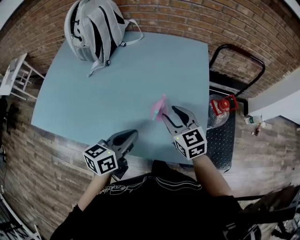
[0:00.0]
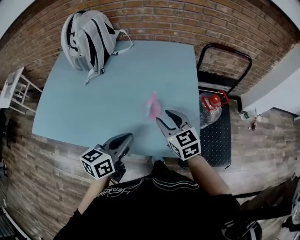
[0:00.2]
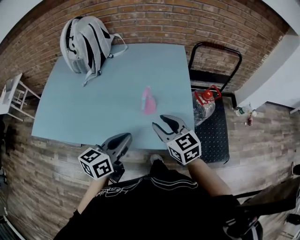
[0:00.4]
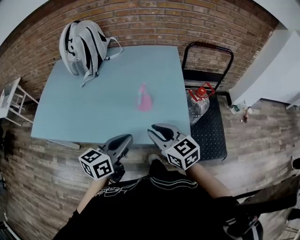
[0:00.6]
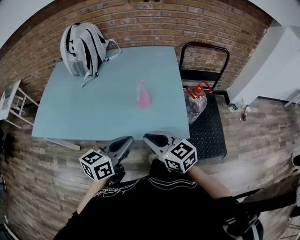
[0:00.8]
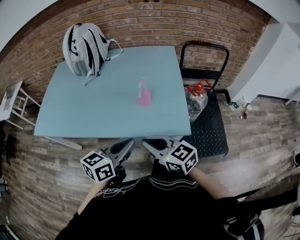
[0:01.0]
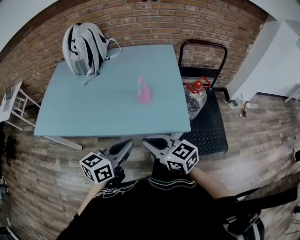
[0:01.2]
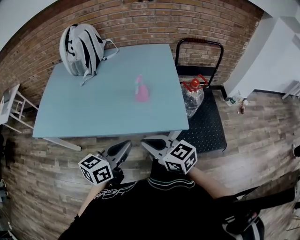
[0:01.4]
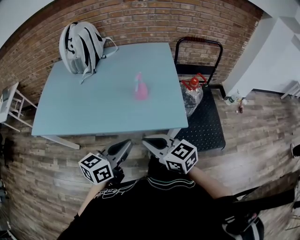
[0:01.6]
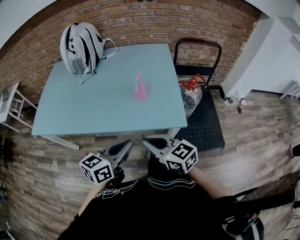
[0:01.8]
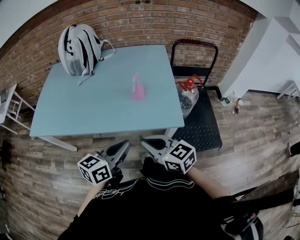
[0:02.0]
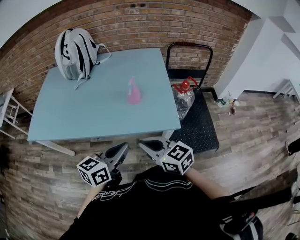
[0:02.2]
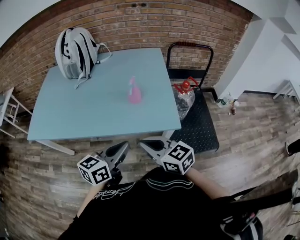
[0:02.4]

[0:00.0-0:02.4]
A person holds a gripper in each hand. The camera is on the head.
0:00.0 to 0:01.2: Both grippers move backward, approximately 25 cm. The right gripper turns by some 20 degrees, and closes up.
0:01.2 to 0:02.4: The grippers make only small movements.

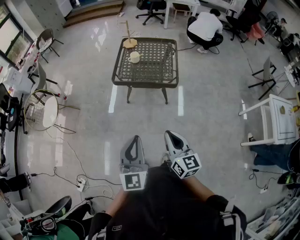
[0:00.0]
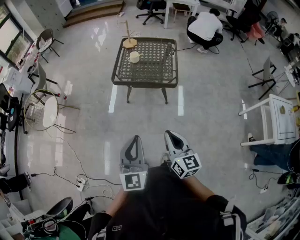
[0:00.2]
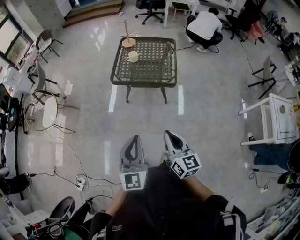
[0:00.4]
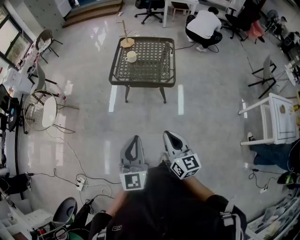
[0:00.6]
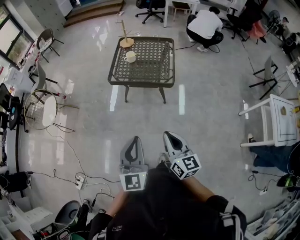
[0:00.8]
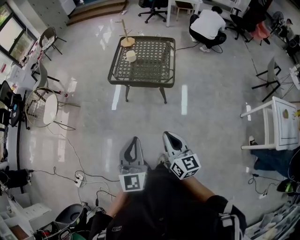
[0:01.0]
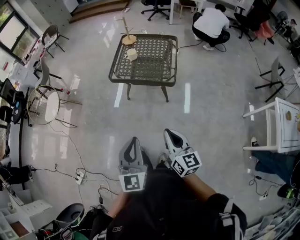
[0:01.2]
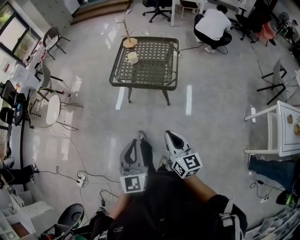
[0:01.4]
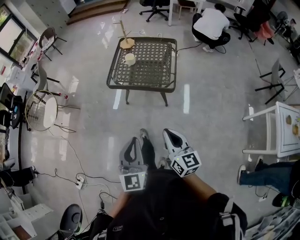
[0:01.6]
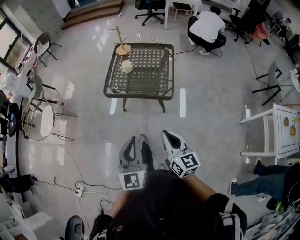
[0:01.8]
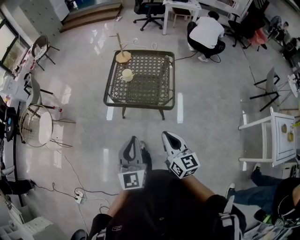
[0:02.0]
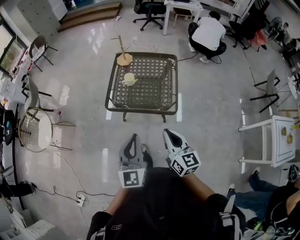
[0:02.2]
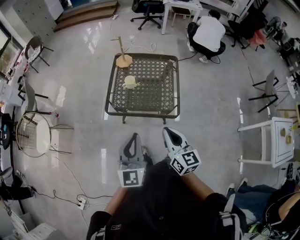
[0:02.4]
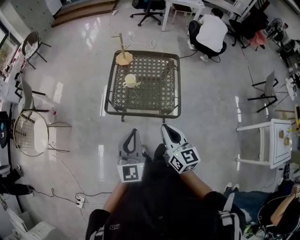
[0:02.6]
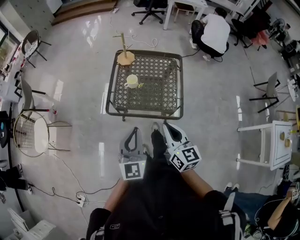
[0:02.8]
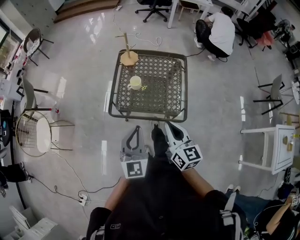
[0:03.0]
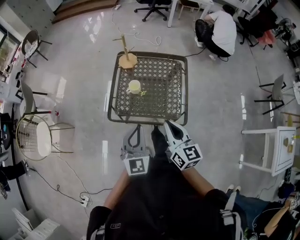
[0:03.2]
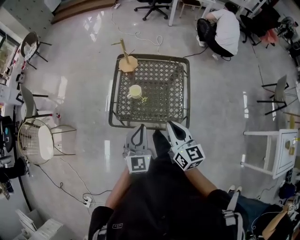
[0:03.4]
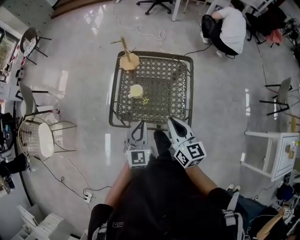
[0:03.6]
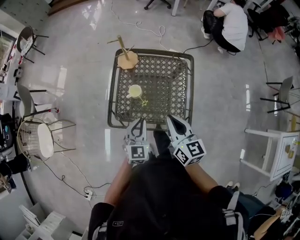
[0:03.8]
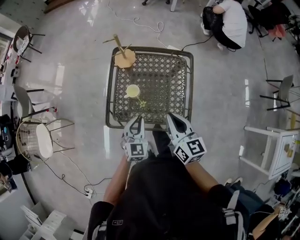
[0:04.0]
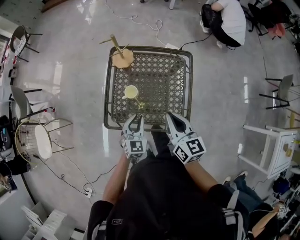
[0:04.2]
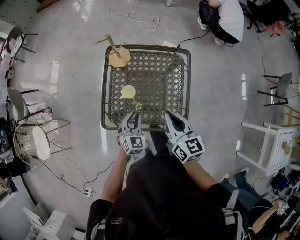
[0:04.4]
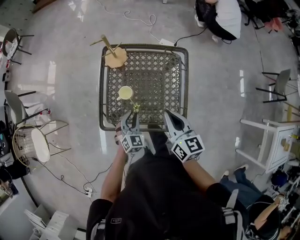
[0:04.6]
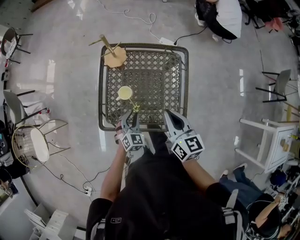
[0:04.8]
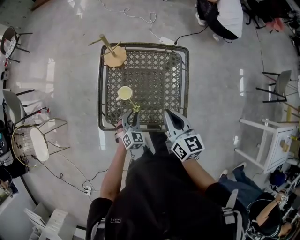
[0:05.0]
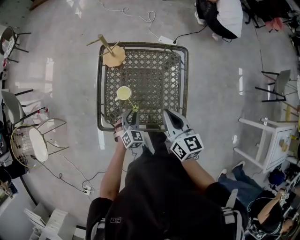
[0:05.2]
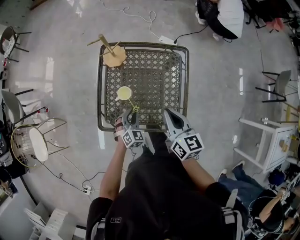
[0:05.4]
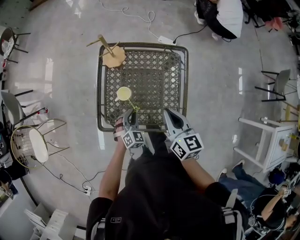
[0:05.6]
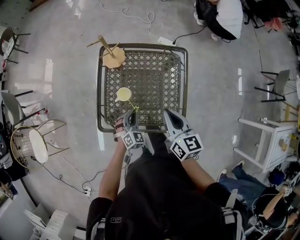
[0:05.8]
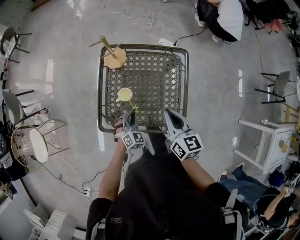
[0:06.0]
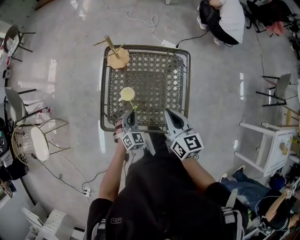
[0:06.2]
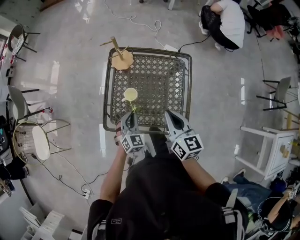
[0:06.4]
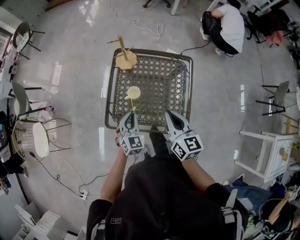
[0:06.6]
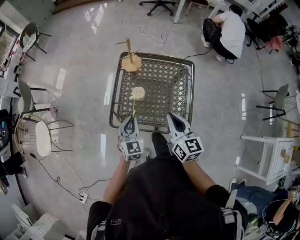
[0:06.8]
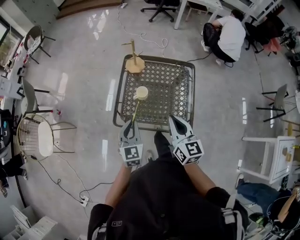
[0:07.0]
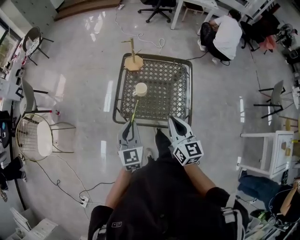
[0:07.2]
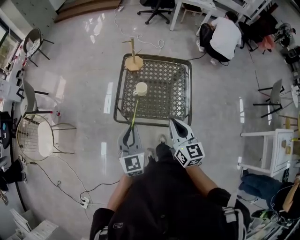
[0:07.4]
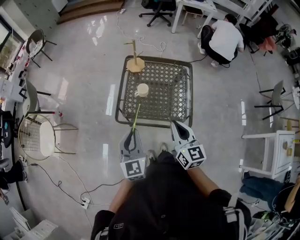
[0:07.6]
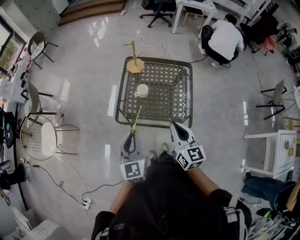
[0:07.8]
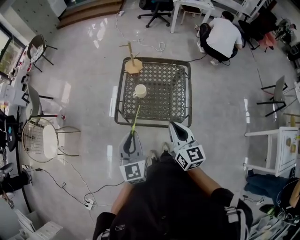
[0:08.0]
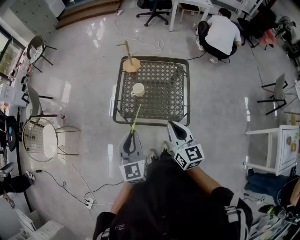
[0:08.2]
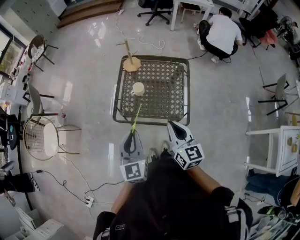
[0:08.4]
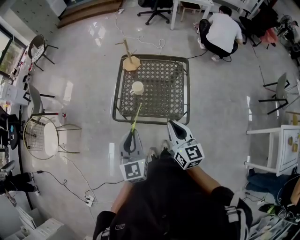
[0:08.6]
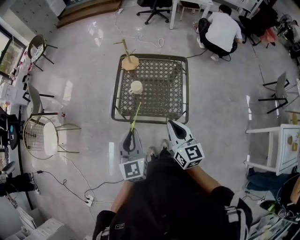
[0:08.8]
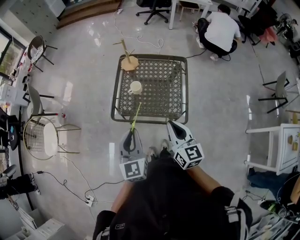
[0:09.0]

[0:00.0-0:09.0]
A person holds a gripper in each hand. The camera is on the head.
0:00.0 to 0:01.6: The two grippers go roughly 10 cm to the right and forward.
0:01.6 to 0:03.0: The grippers both shift forward by approximately 35 cm.
0:03.0 to 0:04.4: The left gripper shifts some 30 cm downward and forward, and angles its fingers downward, by approximately 30 degrees, while the right gripper travels forward by roughly 20 cm.
0:04.4 to 0:06.0: The left gripper travels downward by roughly 5 cm.
0:06.0 to 0:07.6: The right gripper heads backward, upward and to the left, covering roughly 25 cm. The left gripper travels upward, backward and to the left by some 35 cm, and tilts its fingers approximately 30 degrees upward.
0:07.6 to 0:09.0: The left gripper shifts about 5 cm to the right, while the right gripper changes place by about 5 cm.

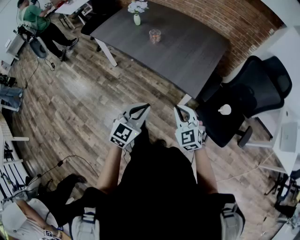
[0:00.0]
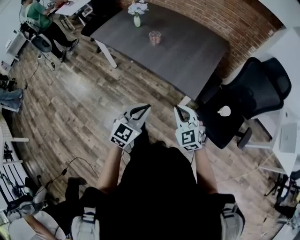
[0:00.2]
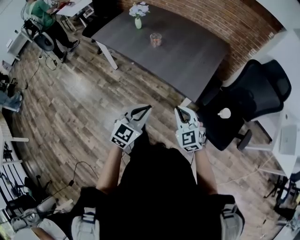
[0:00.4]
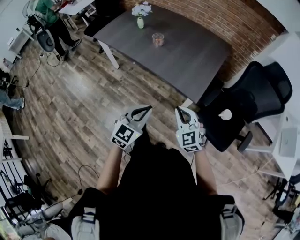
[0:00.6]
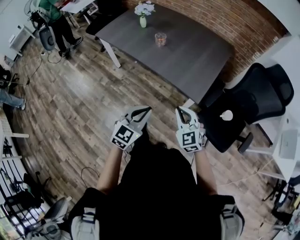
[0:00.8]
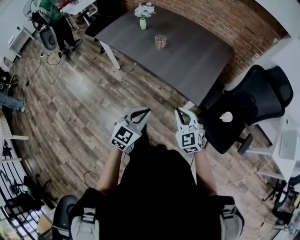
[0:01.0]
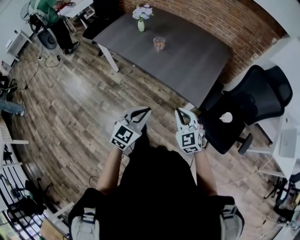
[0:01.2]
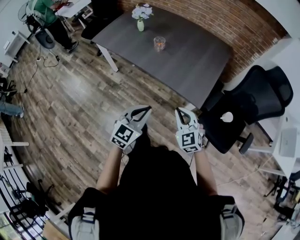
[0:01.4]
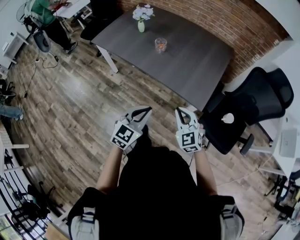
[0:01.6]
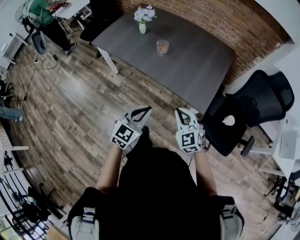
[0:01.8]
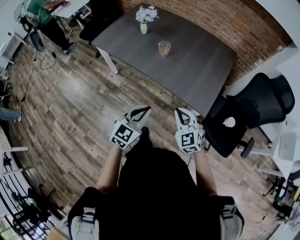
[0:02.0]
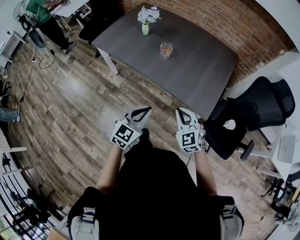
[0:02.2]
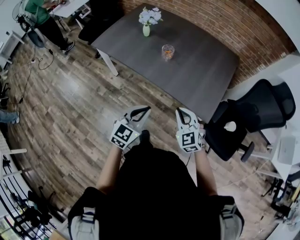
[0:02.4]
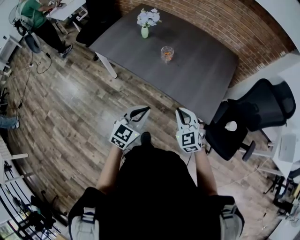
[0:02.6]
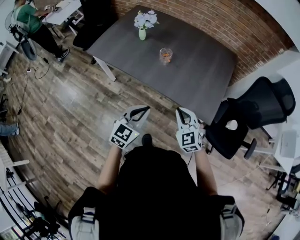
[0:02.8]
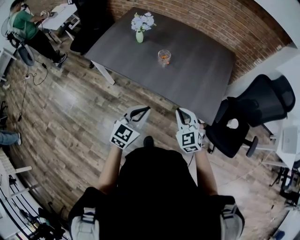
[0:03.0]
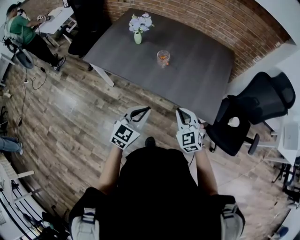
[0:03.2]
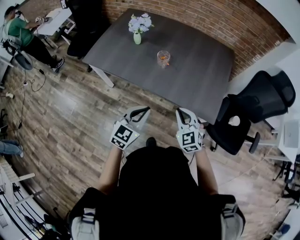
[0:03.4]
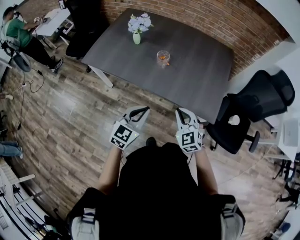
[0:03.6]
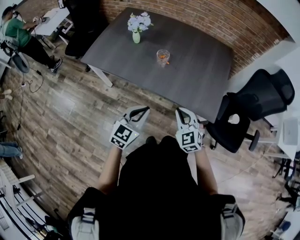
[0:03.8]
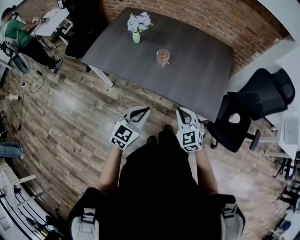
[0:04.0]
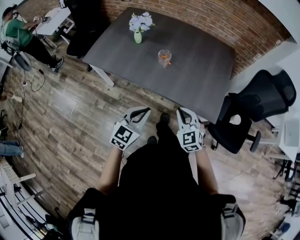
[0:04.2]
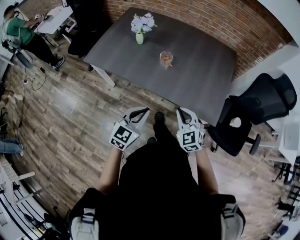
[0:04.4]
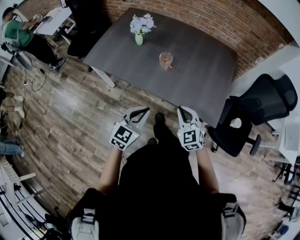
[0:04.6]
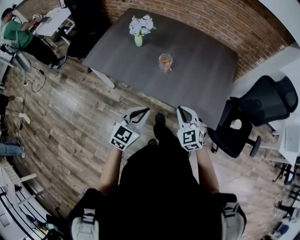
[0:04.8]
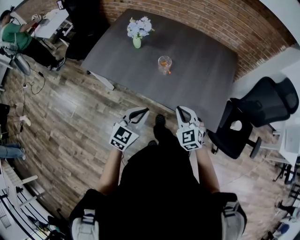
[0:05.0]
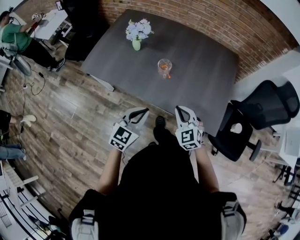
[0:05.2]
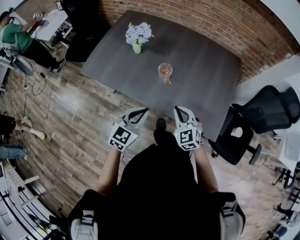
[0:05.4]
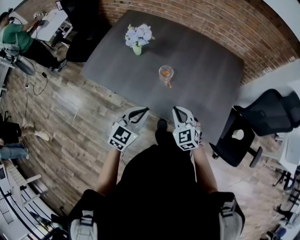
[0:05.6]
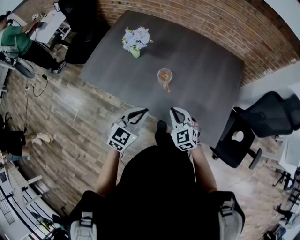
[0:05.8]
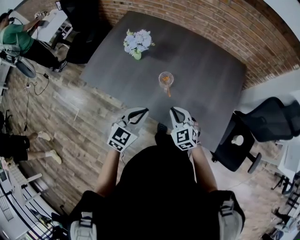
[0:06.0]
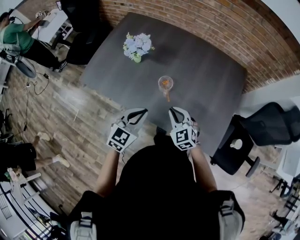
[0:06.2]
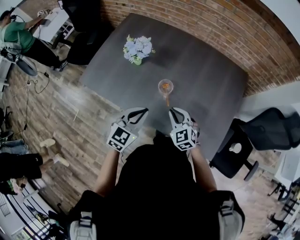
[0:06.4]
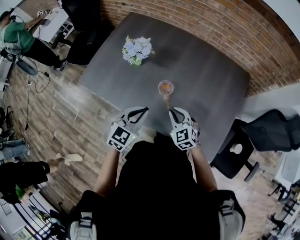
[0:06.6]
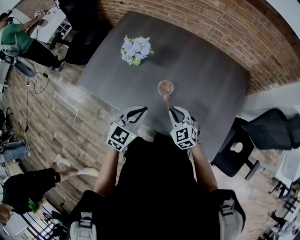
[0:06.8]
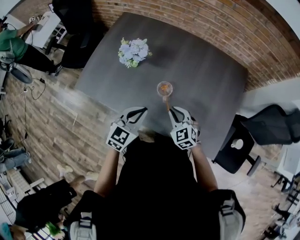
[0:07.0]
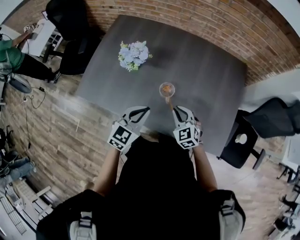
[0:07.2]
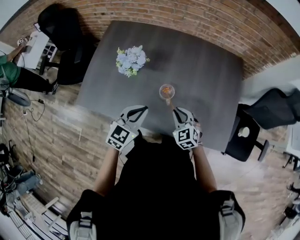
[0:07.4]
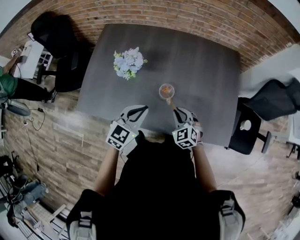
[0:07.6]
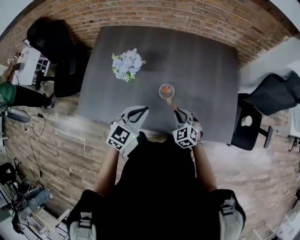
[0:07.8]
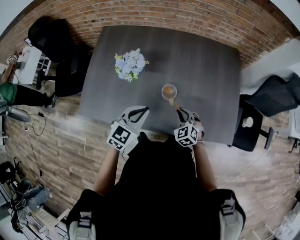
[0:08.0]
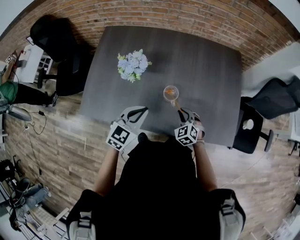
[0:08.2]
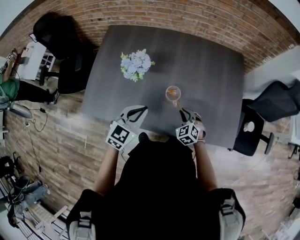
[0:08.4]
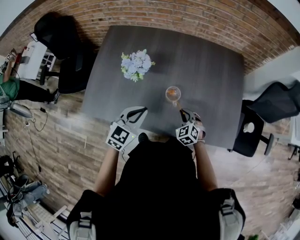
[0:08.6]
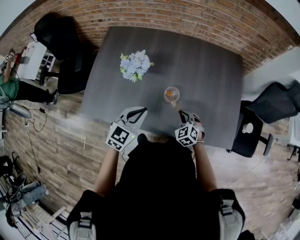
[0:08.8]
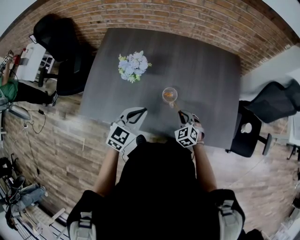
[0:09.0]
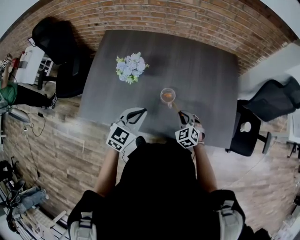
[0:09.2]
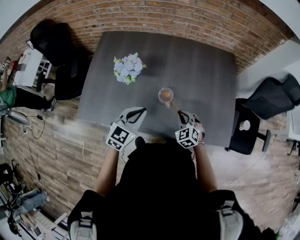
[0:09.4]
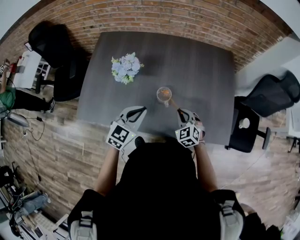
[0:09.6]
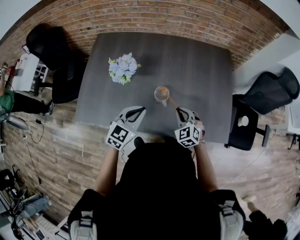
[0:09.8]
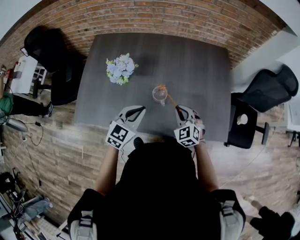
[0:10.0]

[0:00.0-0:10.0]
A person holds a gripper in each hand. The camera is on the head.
0:00.0 to 0:01.4: The left gripper goes roughly 5 cm to the left. The right gripper changes place by approximately 5 cm.
0:01.4 to 0:02.8: The grippers both shift forward and to the left by some 20 cm.
0:02.8 to 0:04.2: There are only small adjustments of the grippers.
0:04.2 to 0:05.8: The grippers both shift forward by approximately 20 cm.
0:05.8 to 0:07.2: The two grippers go approximately 10 cm forward.
0:07.2 to 0:08.6: The right gripper shifts approximately 5 cm downward. Meanwhile the left gripper moves to the left, roughly 5 cm.
0:08.6 to 0:10.0: The right gripper is displaced upward by roughly 10 cm, while the left gripper goes roughly 5 cm to the right.

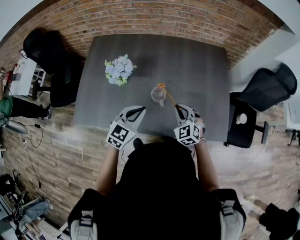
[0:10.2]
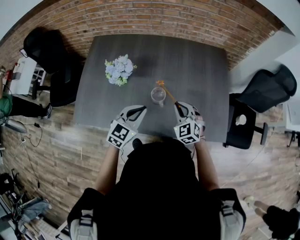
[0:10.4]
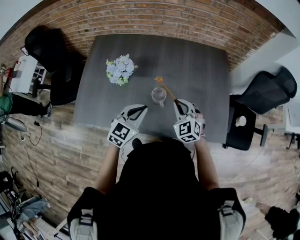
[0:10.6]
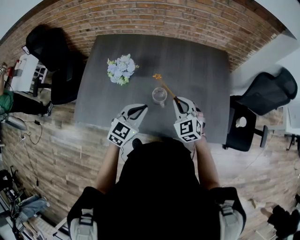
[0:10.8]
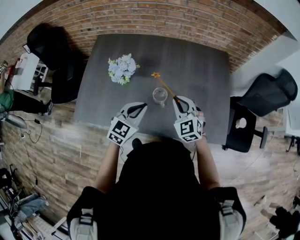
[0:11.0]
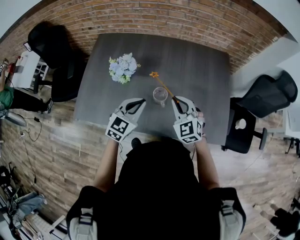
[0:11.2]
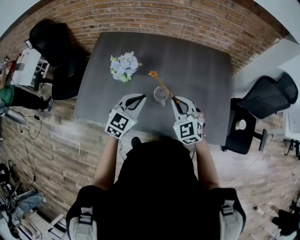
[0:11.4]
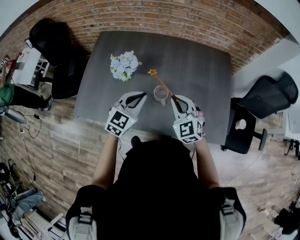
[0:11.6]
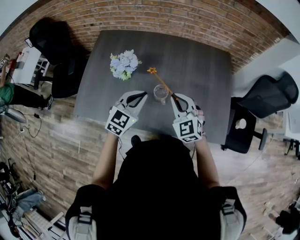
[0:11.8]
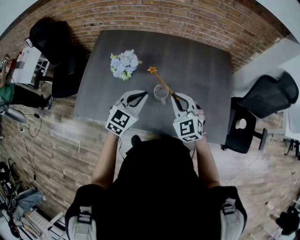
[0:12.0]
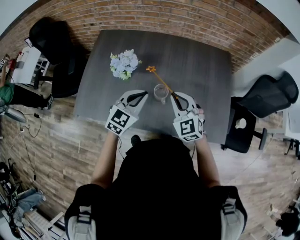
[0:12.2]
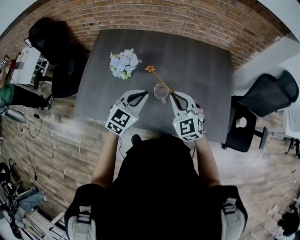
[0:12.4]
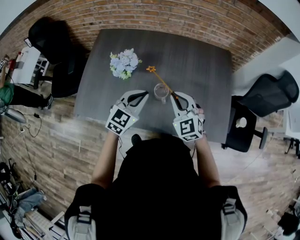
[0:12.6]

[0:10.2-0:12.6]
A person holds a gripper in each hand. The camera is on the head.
0:10.2 to 0:11.4: The right gripper heads upward, covering some 10 cm.
0:11.4 to 0:12.6: The grippers make only small movements.
